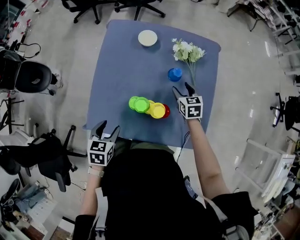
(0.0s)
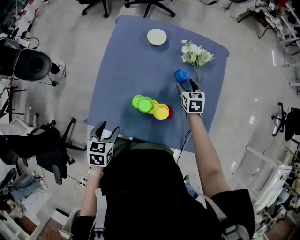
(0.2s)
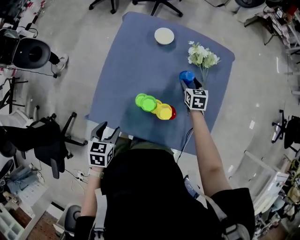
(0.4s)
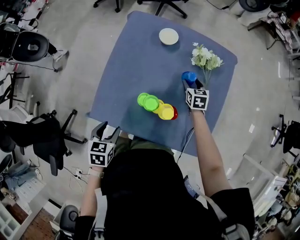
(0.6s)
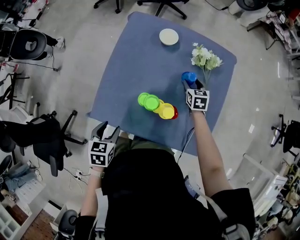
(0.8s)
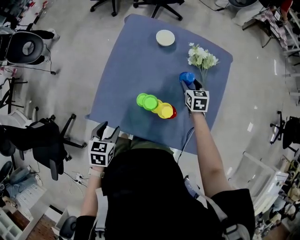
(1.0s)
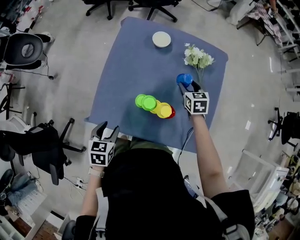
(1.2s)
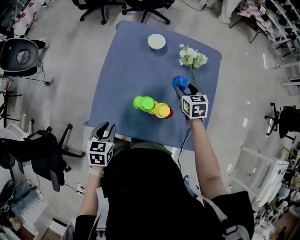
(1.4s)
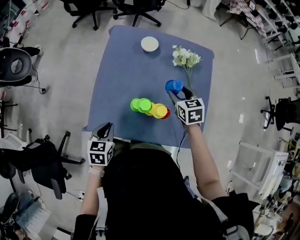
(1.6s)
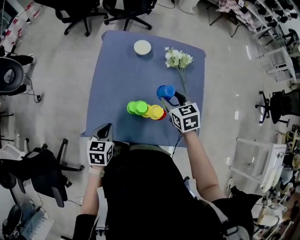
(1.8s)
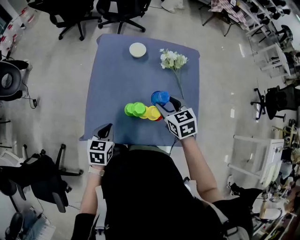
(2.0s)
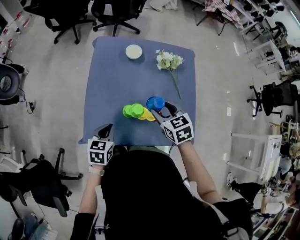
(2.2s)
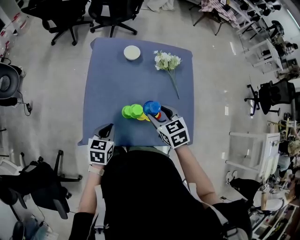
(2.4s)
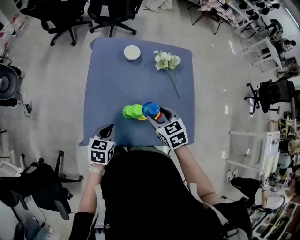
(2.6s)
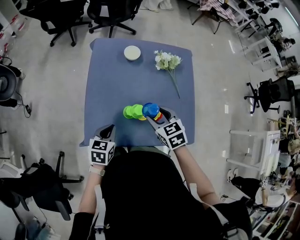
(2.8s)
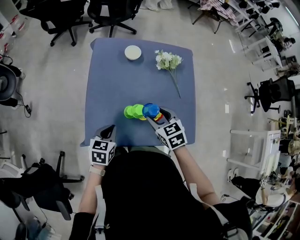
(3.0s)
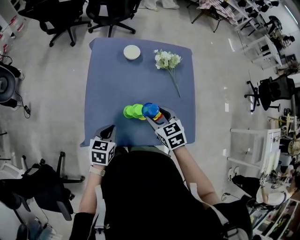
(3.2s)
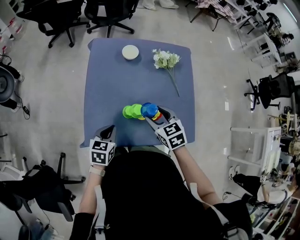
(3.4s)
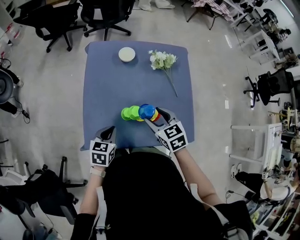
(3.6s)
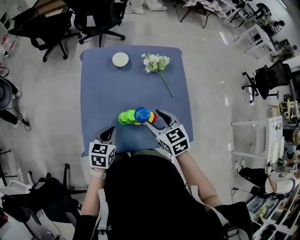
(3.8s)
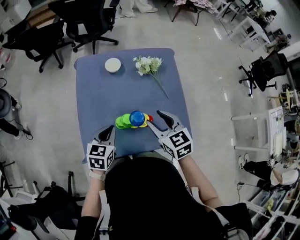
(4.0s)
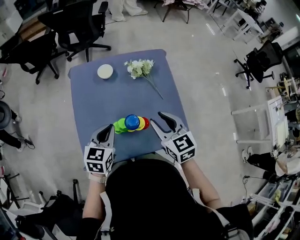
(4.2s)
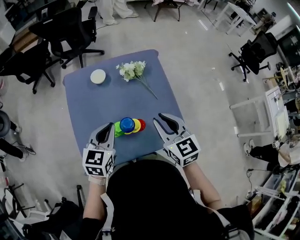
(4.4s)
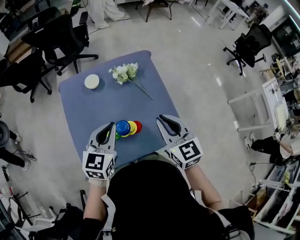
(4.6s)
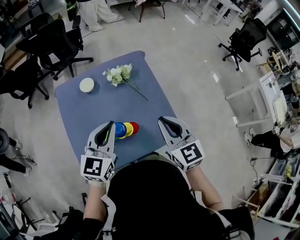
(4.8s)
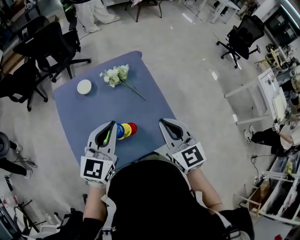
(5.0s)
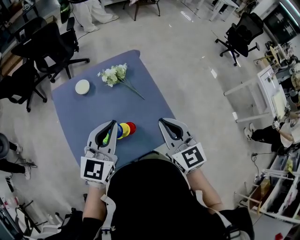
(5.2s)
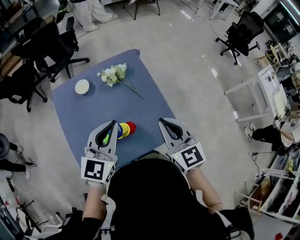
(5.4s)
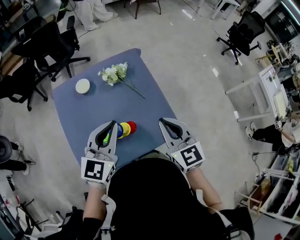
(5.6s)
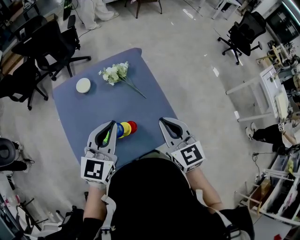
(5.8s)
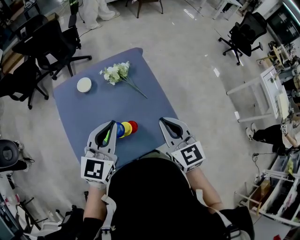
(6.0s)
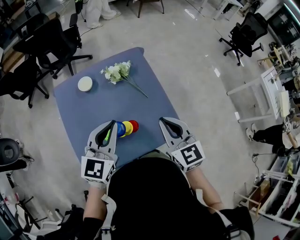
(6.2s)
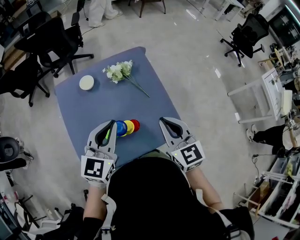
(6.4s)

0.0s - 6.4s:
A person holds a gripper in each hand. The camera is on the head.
0.0s - 1.6s: The left gripper closes up. Meanwhile the right gripper moves upward and to the left, roughly 10 cm.
1.6s - 3.2s: The right gripper heads backward and to the left, covering some 15 cm.
3.2s - 4.8s: The right gripper shifts roughly 25 cm upward and to the right, rotates roughly 40 degrees, and closes up; the left gripper travels upward, to the right and forward by some 30 cm, and points its fingers some 30 degrees further upward.
4.8s - 6.4s: There are only small adjustments of the grippers.

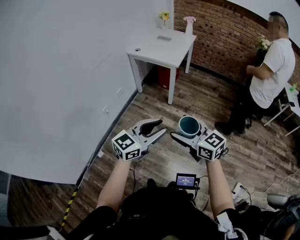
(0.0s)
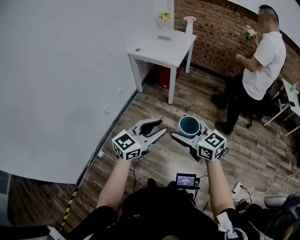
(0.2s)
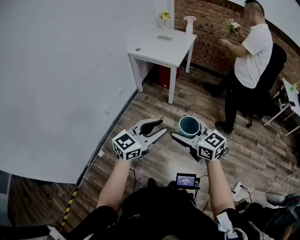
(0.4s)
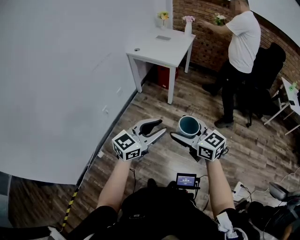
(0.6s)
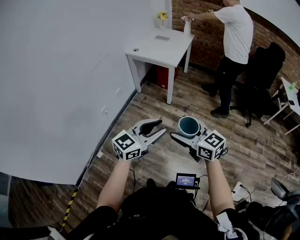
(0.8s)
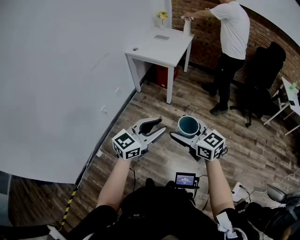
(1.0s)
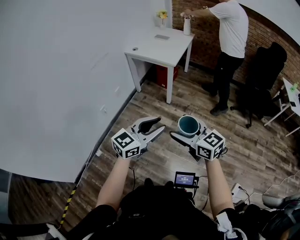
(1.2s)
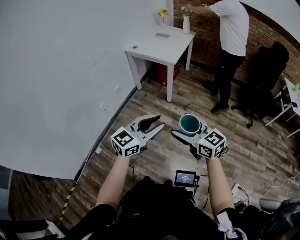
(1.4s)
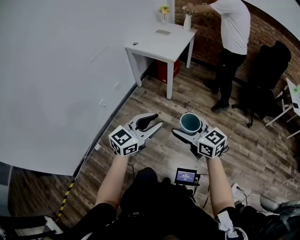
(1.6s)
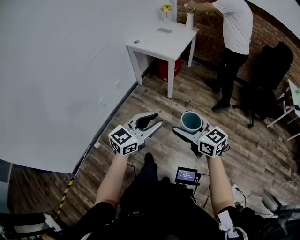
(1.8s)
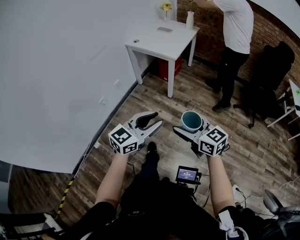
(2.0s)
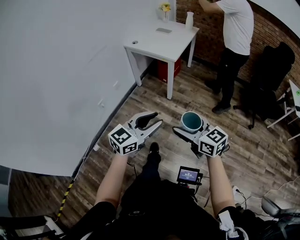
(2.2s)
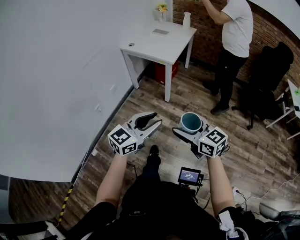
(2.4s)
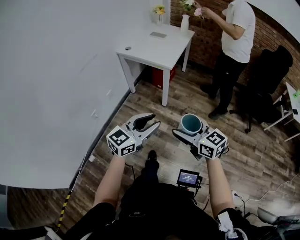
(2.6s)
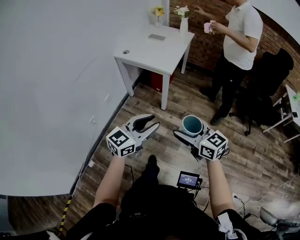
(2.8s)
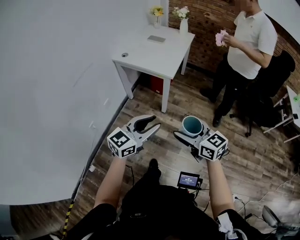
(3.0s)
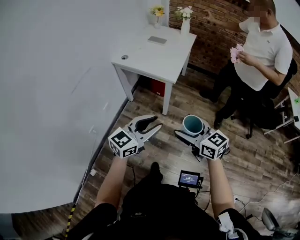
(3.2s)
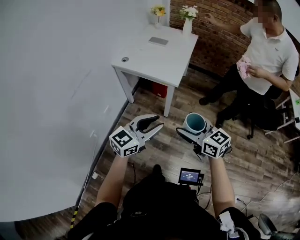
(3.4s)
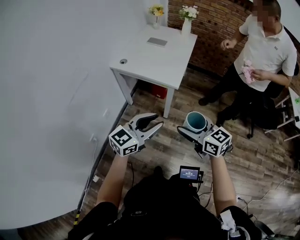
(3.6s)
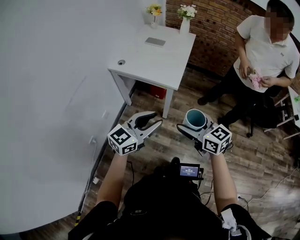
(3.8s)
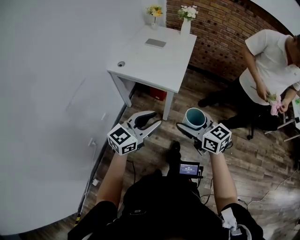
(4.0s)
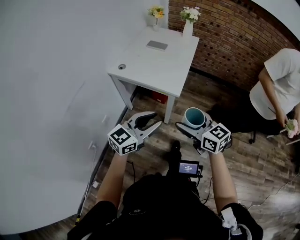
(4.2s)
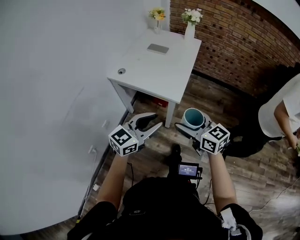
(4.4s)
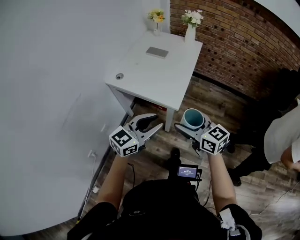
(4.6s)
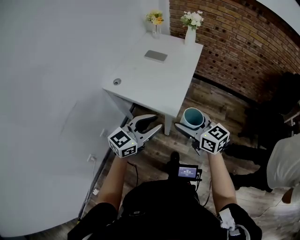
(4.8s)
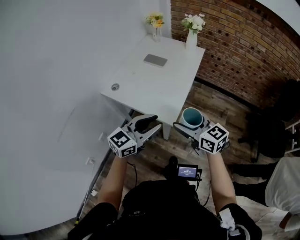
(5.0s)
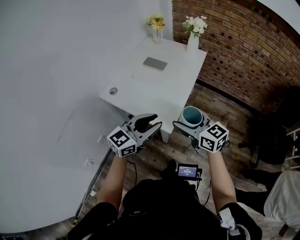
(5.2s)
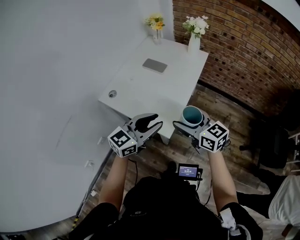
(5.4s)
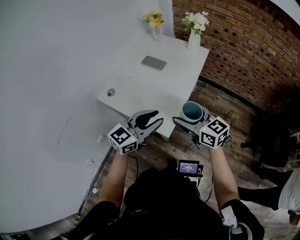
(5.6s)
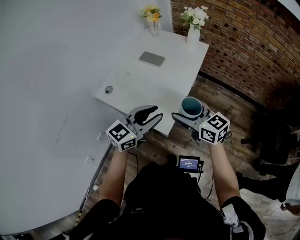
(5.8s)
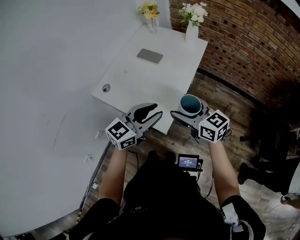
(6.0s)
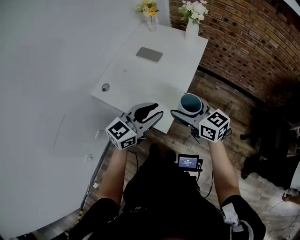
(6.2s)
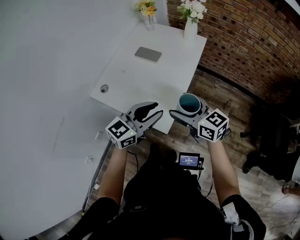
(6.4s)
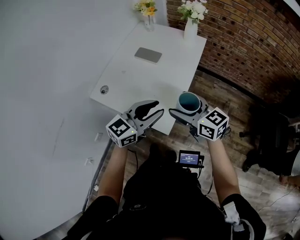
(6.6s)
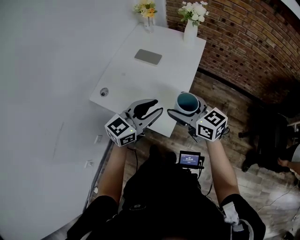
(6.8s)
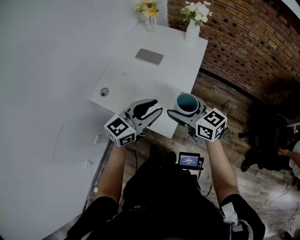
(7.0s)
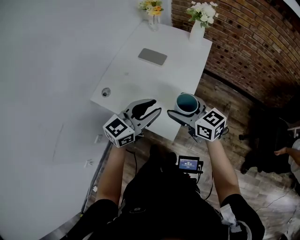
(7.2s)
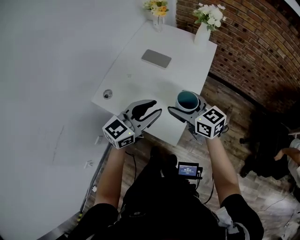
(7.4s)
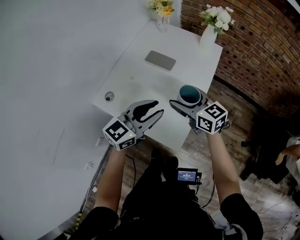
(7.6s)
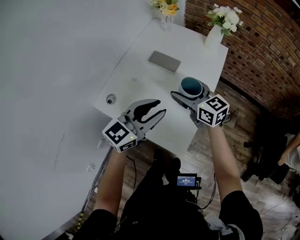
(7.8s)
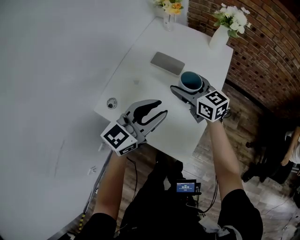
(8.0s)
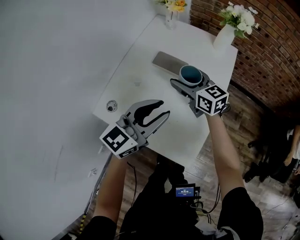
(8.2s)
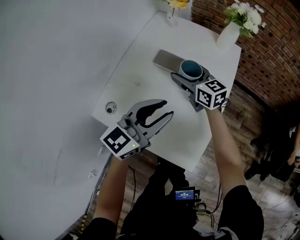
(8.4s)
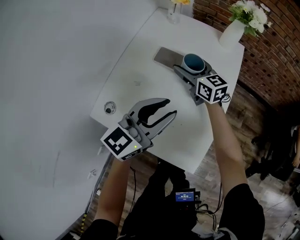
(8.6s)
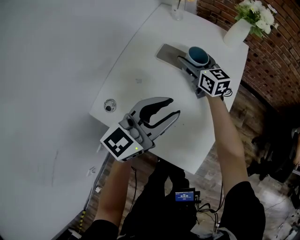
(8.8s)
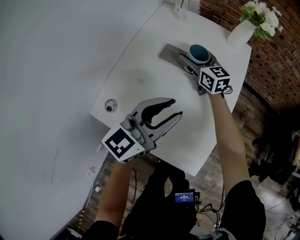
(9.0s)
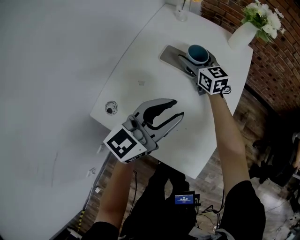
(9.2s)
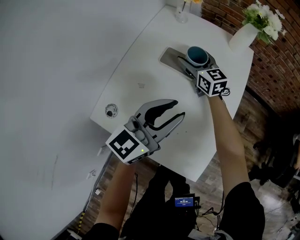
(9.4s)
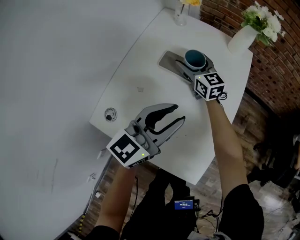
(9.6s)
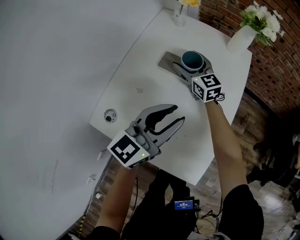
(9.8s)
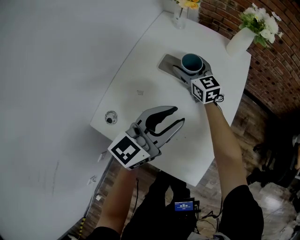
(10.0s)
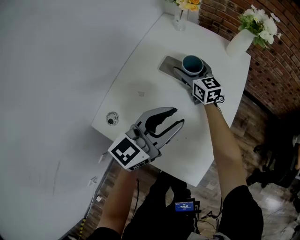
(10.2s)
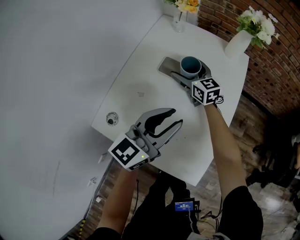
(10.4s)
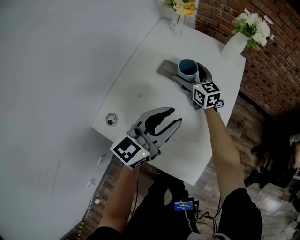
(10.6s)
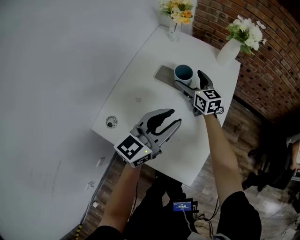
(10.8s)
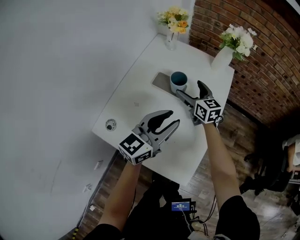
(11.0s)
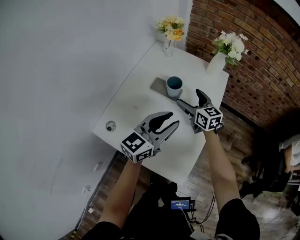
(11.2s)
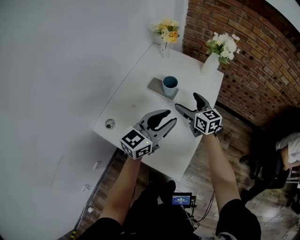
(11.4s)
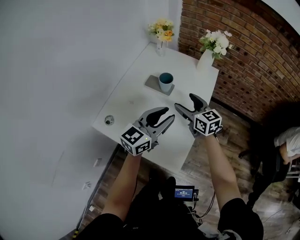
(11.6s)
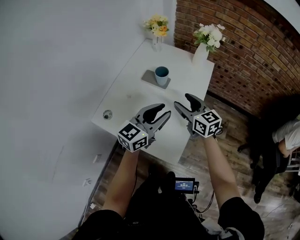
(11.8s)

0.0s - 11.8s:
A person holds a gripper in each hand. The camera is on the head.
0.0s - 1.4s: The two grippers go some 5 cm to the right.
1.4s - 3.0s: The grippers both shift forward by approximately 25 cm.
3.0s - 4.4s: Both grippers move forward, some 25 cm.
4.4s - 6.0s: The grippers both shift forward by some 30 cm.
6.0s - 7.4s: Both grippers move forward and to the left, approximately 10 cm.
7.4s - 8.8s: The left gripper shifts about 15 cm forward and to the left. Meanwhile the right gripper is displaced forward by about 30 cm.
8.8s - 10.4s: The grippers move only a little.
10.4s - 11.8s: The right gripper goes approximately 30 cm backward, upward and to the right, and closes up. The left gripper moves to the right, upward and backward, about 10 cm.

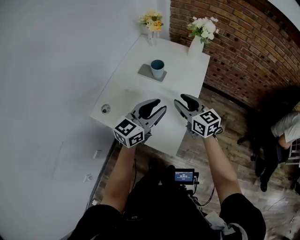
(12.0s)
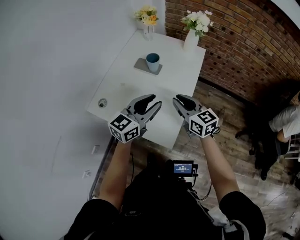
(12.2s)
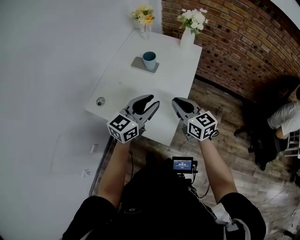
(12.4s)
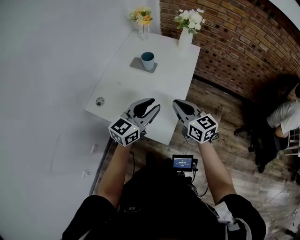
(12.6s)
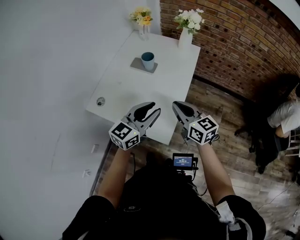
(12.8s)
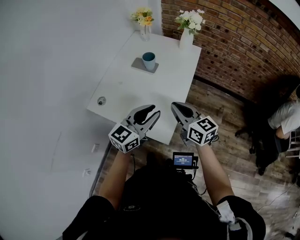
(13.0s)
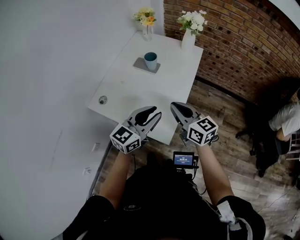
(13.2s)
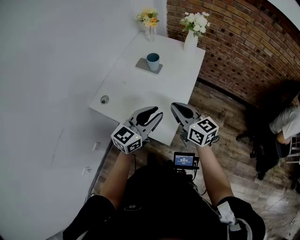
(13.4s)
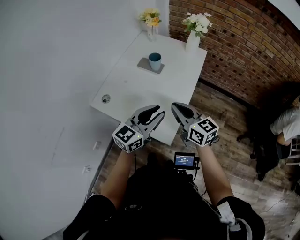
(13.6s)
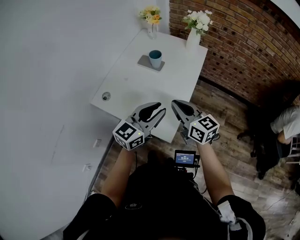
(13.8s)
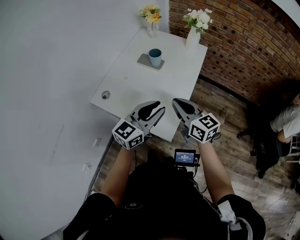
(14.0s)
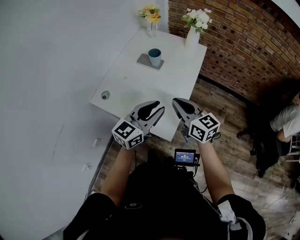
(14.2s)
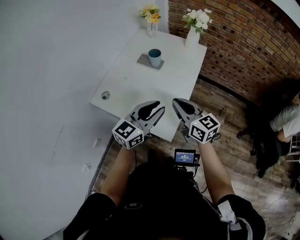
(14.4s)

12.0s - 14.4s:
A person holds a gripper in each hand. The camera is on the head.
12.0s - 13.2s: Both grippers travel together backward, roughly 10 cm.
13.2s - 14.4s: Both grippers stay about where they are.

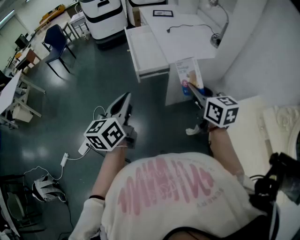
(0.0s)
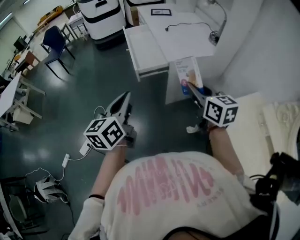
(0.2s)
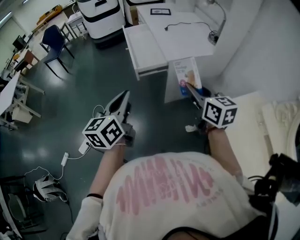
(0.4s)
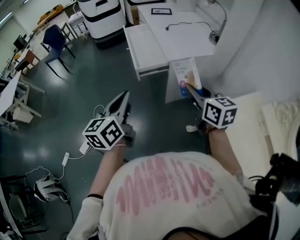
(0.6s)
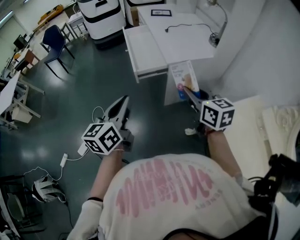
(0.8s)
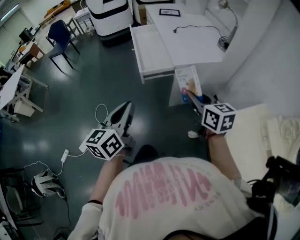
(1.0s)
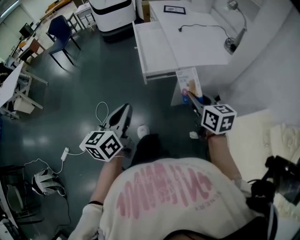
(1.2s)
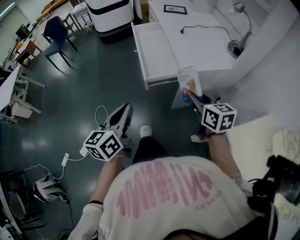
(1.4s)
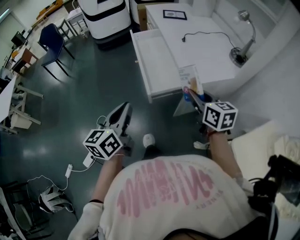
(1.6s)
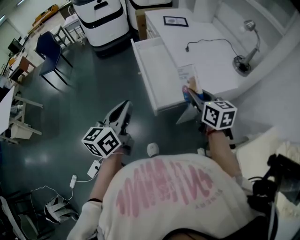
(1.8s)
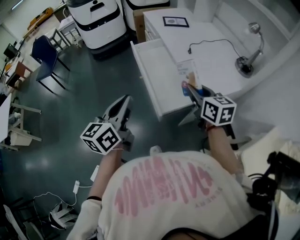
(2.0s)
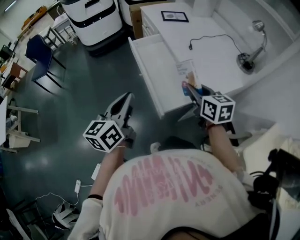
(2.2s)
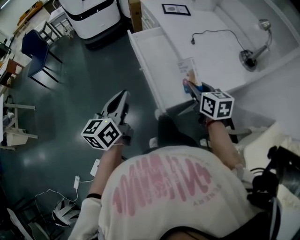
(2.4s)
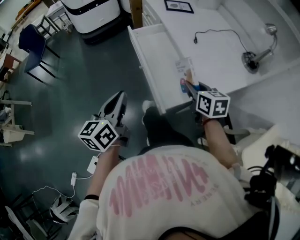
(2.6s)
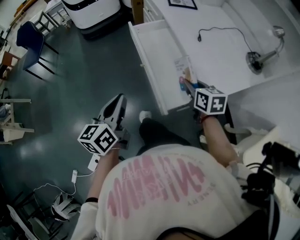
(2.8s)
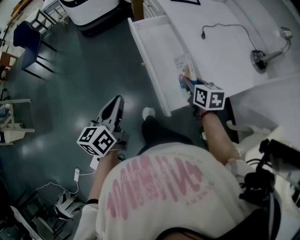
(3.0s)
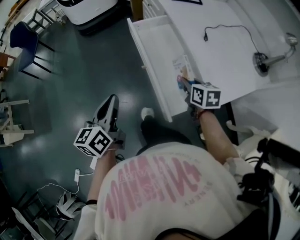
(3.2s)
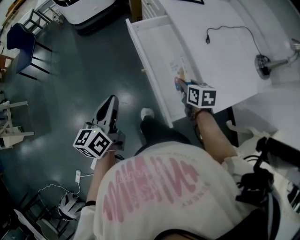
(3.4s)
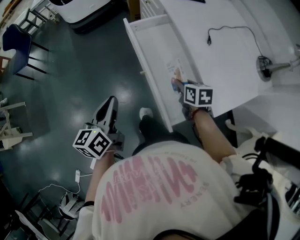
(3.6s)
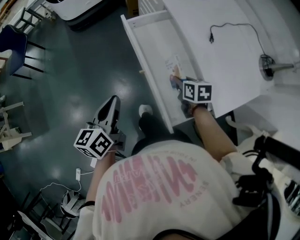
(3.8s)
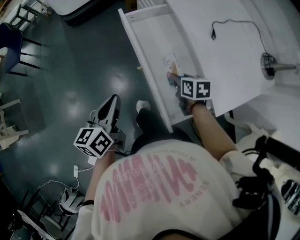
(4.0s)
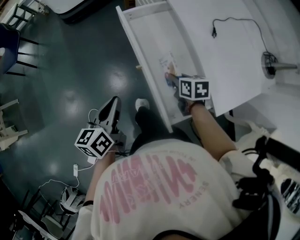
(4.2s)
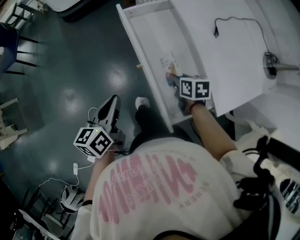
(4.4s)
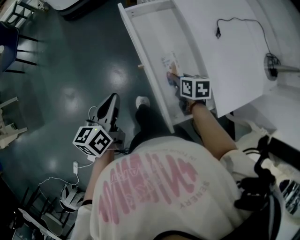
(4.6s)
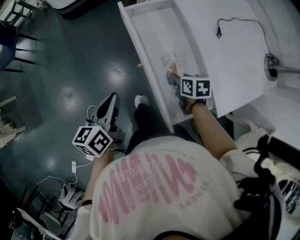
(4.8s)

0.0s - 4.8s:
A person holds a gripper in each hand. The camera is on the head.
0.0s - 1.6s: The right gripper travels forward by approximately 20 cm; the left gripper moves forward and to the left, roughly 20 cm.
1.6s - 3.2s: The right gripper moves forward, downward and to the left, approximately 30 cm, and rotates approximately 20 degrees. The left gripper shifts approximately 30 cm forward and to the left.
3.2s - 4.8s: The left gripper shifts roughly 10 cm downward and forward, while the right gripper shifts some 10 cm downward.
